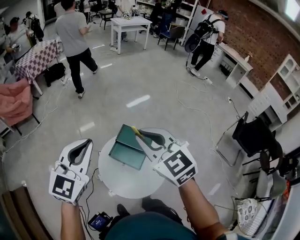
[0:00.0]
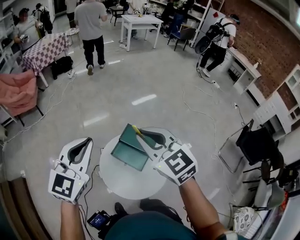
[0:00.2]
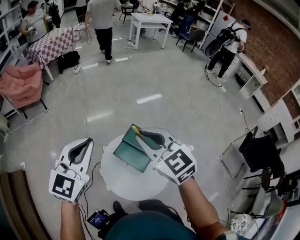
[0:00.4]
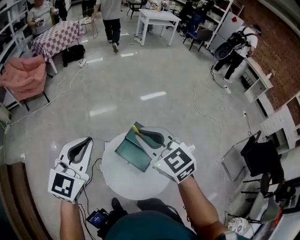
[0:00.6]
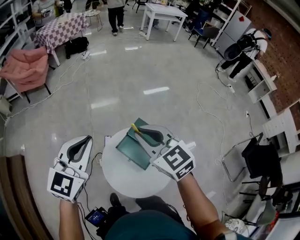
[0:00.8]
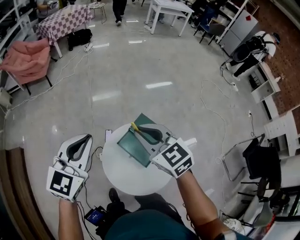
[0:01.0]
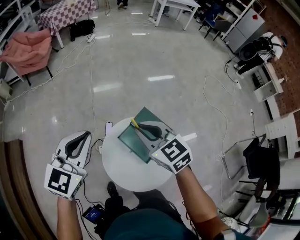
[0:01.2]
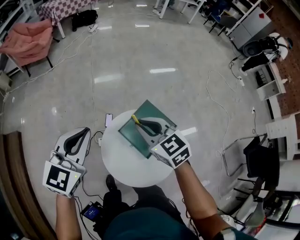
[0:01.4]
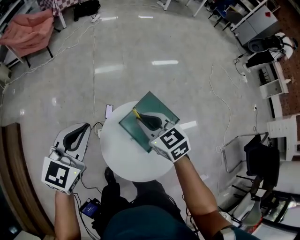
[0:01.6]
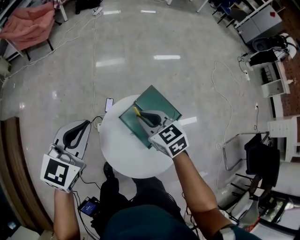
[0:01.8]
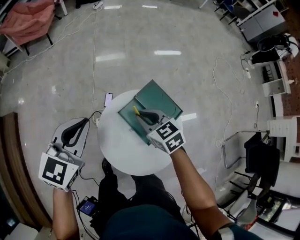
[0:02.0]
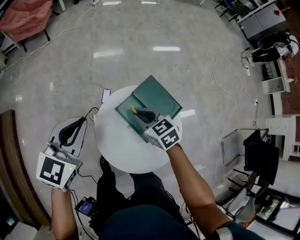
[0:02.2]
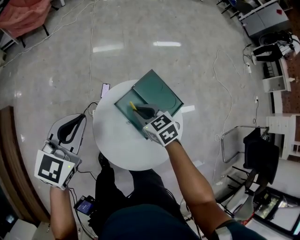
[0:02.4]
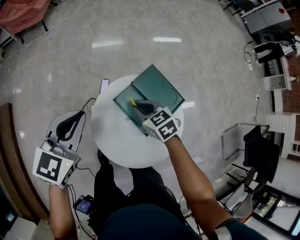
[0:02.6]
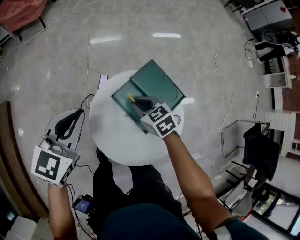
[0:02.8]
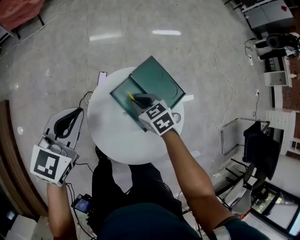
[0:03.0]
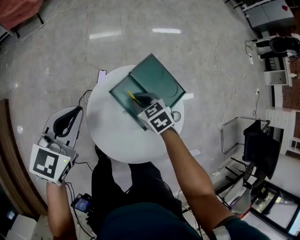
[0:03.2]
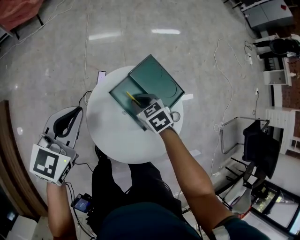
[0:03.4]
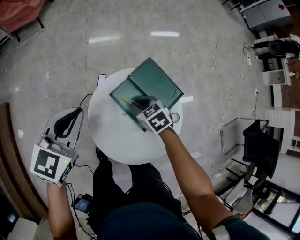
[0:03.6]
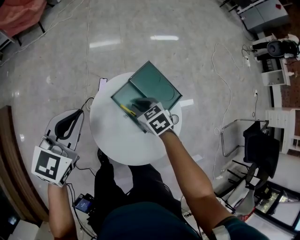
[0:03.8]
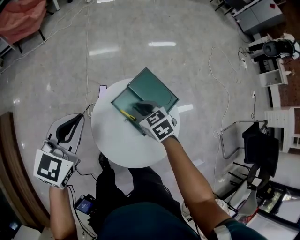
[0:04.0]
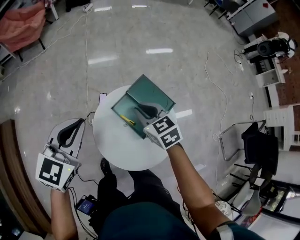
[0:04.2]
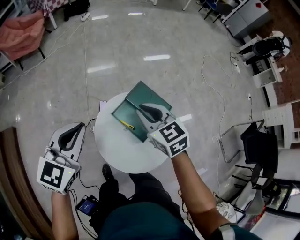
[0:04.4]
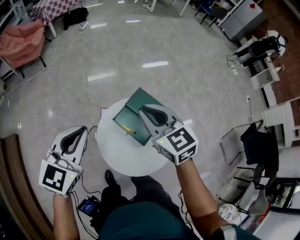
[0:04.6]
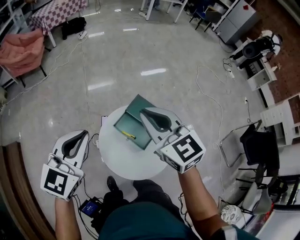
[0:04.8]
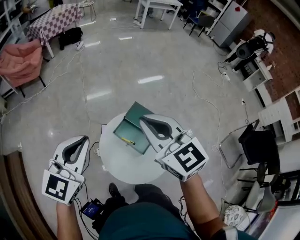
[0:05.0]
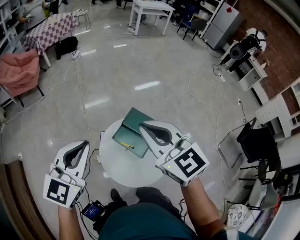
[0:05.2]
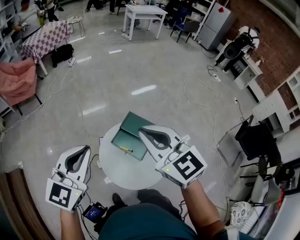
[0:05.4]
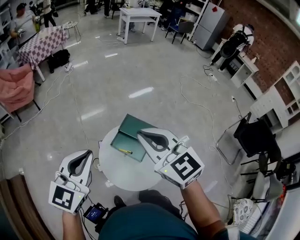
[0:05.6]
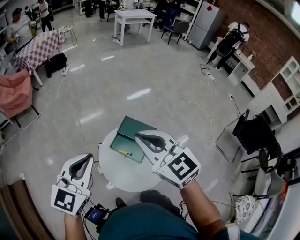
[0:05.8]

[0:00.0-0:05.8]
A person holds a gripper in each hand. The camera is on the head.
0.0 to 1.4 s: The right gripper is displaced downward and forward by approximately 30 cm, and rotates some 30 degrees; the left gripper moves downward, forward and to the left, approximately 25 cm, and rotates roughly 20 degrees.
1.4 to 2.8 s: The right gripper goes approximately 30 cm downward, and swivels about 20 degrees. The left gripper heads downward, covering approximately 20 cm.
2.8 to 4.4 s: The left gripper travels upward and backward by about 15 cm, while the right gripper is displaced upward by about 25 cm, and swivels roughly 20 degrees.
4.4 to 5.8 s: The grippers both shift upward and backward by approximately 25 cm. The right gripper turns by some 20 degrees.

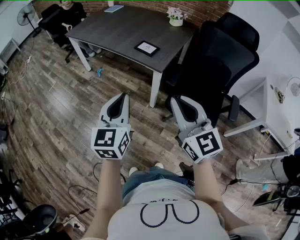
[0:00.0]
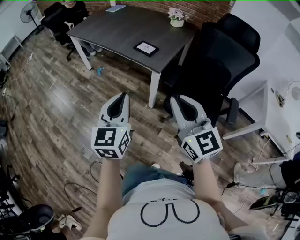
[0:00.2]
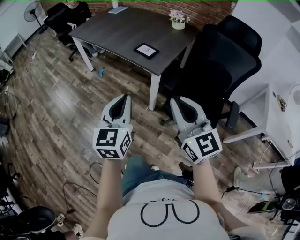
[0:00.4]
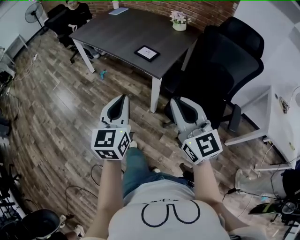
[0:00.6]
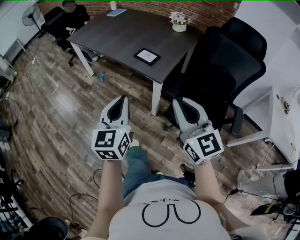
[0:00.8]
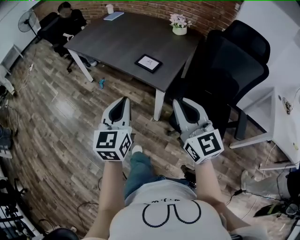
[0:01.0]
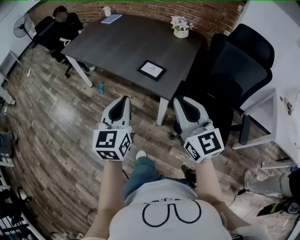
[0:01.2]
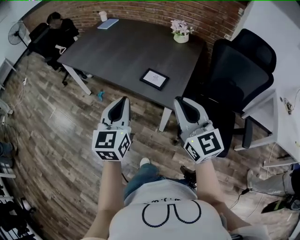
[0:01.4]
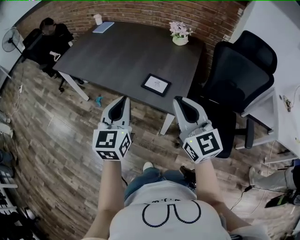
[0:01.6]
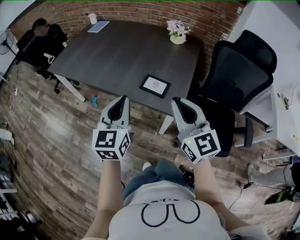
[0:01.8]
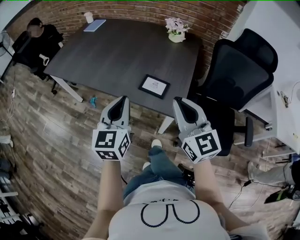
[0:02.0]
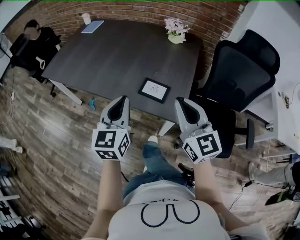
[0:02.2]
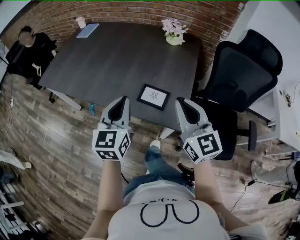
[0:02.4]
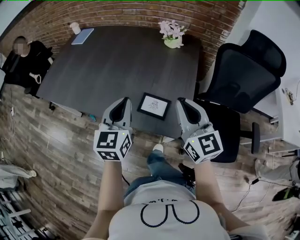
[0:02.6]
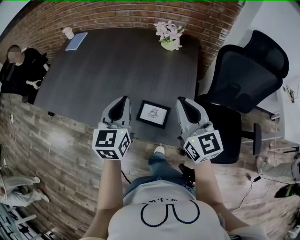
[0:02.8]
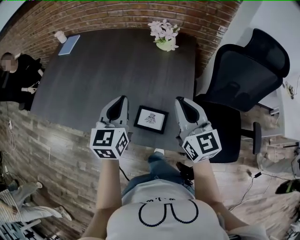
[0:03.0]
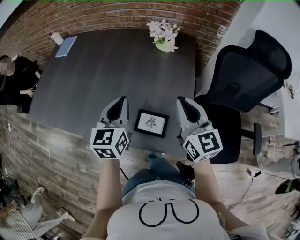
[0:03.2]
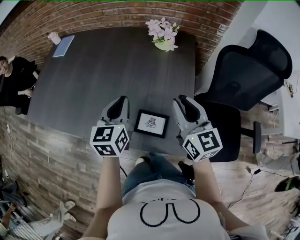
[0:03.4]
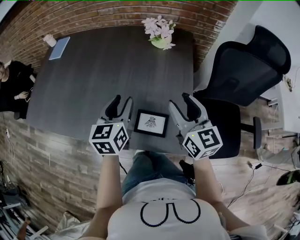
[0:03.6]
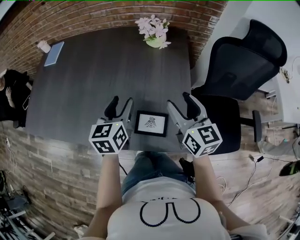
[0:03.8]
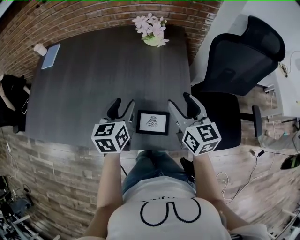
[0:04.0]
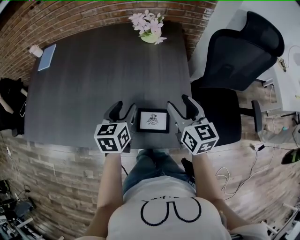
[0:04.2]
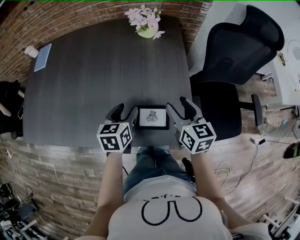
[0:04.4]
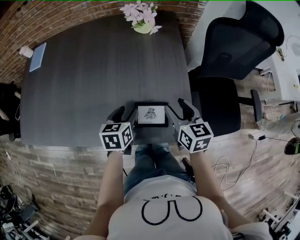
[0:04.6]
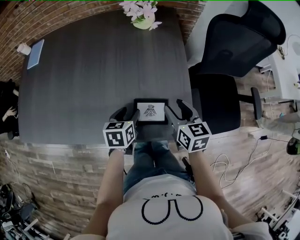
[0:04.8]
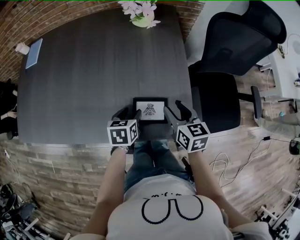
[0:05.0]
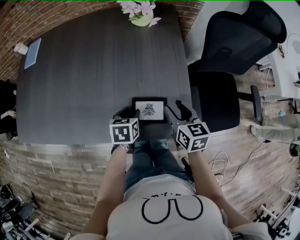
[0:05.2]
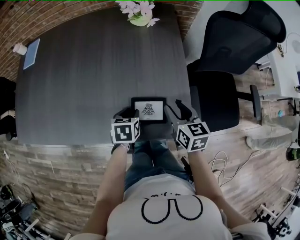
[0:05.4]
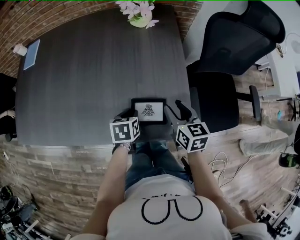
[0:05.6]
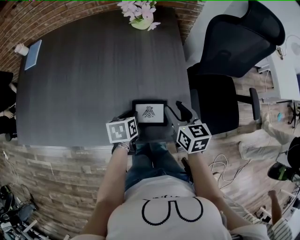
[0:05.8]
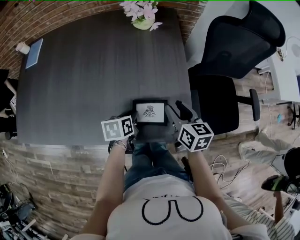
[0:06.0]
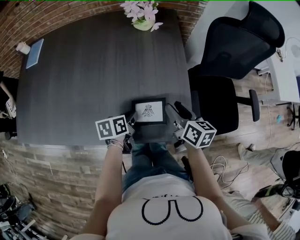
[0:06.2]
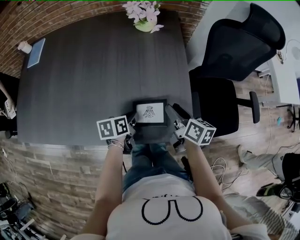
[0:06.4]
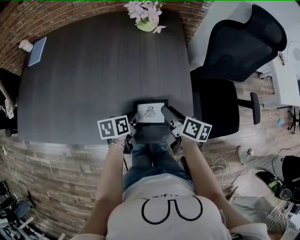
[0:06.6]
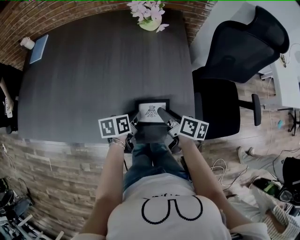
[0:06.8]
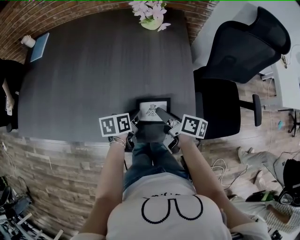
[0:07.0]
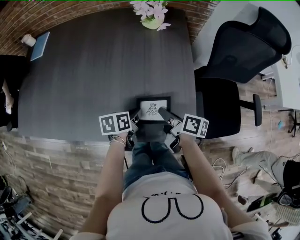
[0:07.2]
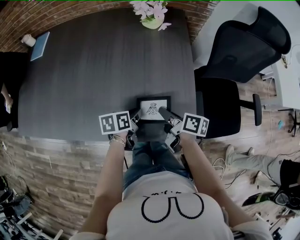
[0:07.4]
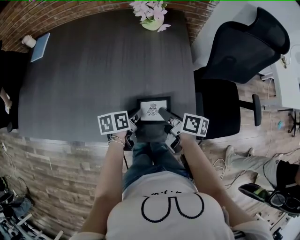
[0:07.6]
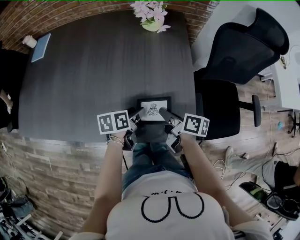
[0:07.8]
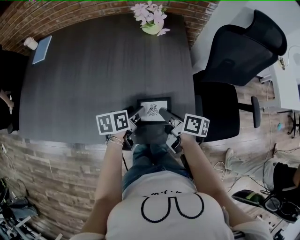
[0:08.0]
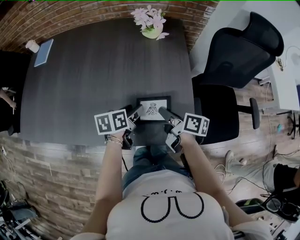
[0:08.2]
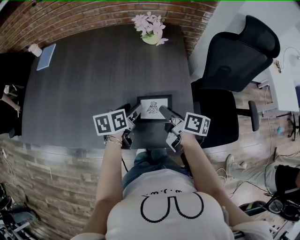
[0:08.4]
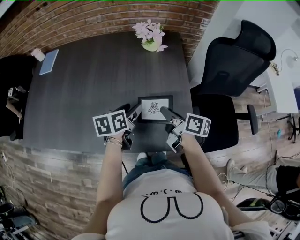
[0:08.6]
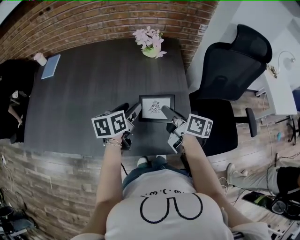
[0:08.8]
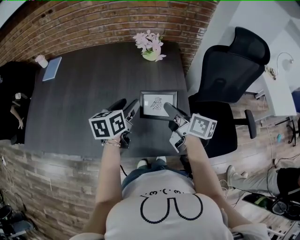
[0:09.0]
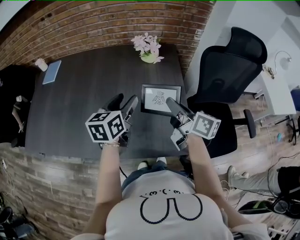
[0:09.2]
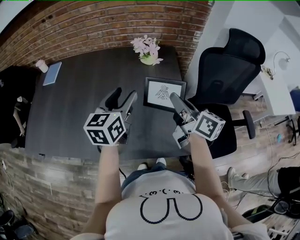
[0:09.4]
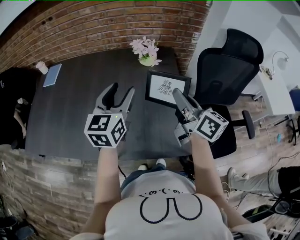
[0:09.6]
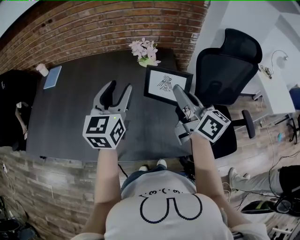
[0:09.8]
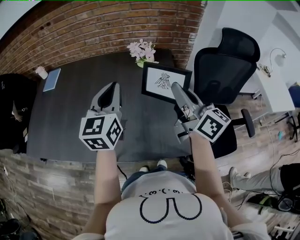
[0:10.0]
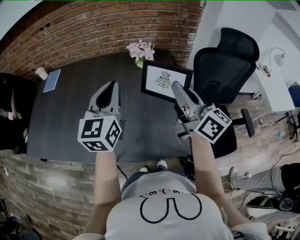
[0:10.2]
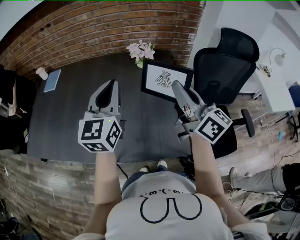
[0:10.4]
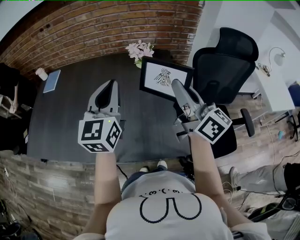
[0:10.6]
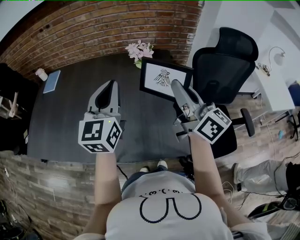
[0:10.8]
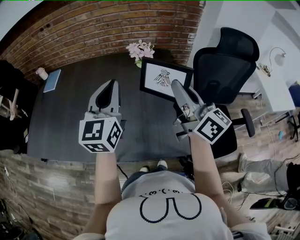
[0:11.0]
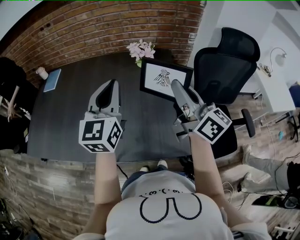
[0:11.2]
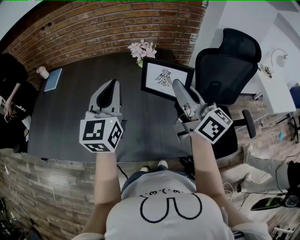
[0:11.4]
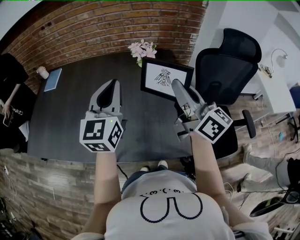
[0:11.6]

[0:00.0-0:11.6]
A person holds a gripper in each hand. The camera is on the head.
0.0 to 1.4 s: Both grippers move forward, roughly 30 cm.
1.4 to 2.8 s: The grippers both shift forward by some 30 cm.
2.8 to 4.4 s: The grippers both shift downward and forward by some 15 cm. The left gripper swivels roughly 30 degrees, and opens up. The right gripper turns by some 30 degrees, and opens its fingers.
4.4 to 5.8 s: The left gripper shifts some 10 cm downward, swivels about 20 degrees, and closes. The right gripper shifts roughly 5 cm downward.
5.8 to 7.2 s: The right gripper moves to the left, approximately 5 cm, rolls clockwise, seen from behind, by roughly 40 degrees, and closes up.
7.2 to 8.8 s: The right gripper moves upward, roughly 10 cm; the left gripper is displaced upward and forward by approximately 15 cm, turns by some 20 degrees, and opens.
8.8 to 10.2 s: The two grippers go some 20 cm upward. The left gripper points its fingers approximately 30 degrees further upward, and closes up. Meanwhile the right gripper changes its angle by roughly 40 degrees.
10.2 to 11.6 s: The grippers move only a little.

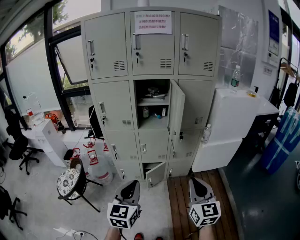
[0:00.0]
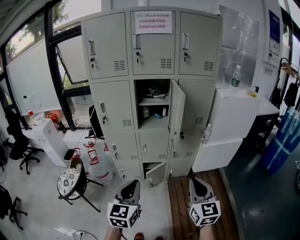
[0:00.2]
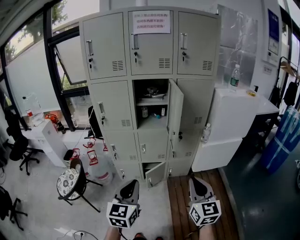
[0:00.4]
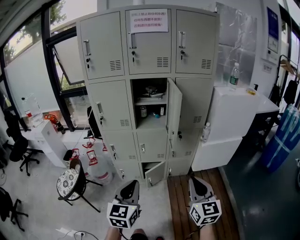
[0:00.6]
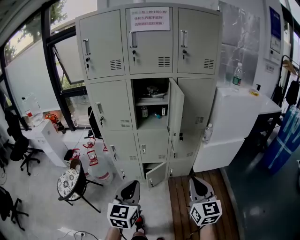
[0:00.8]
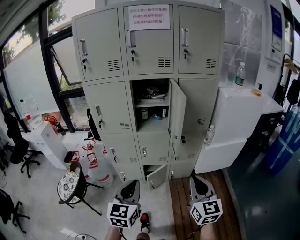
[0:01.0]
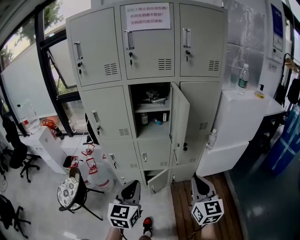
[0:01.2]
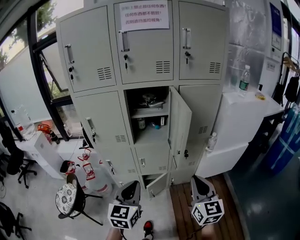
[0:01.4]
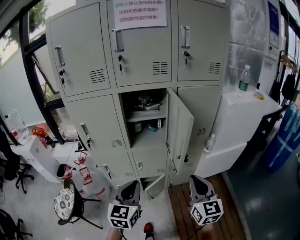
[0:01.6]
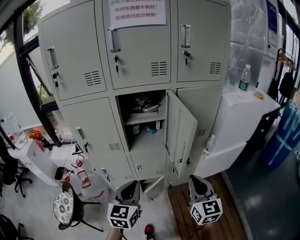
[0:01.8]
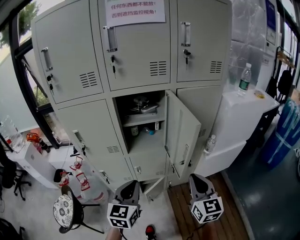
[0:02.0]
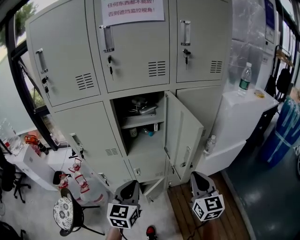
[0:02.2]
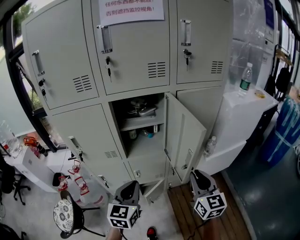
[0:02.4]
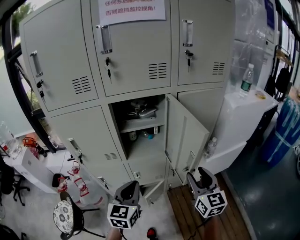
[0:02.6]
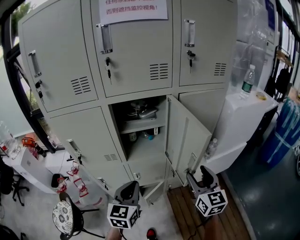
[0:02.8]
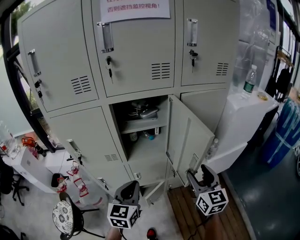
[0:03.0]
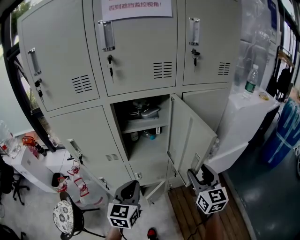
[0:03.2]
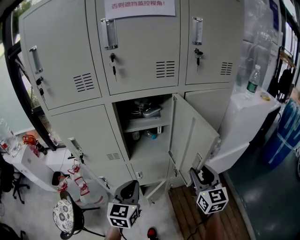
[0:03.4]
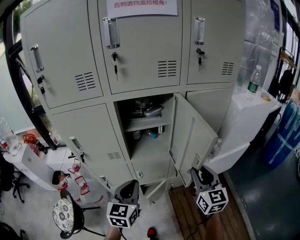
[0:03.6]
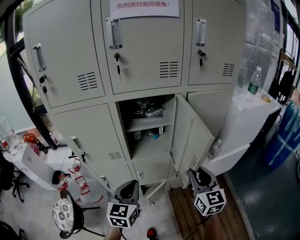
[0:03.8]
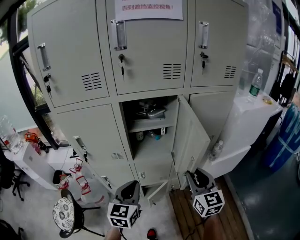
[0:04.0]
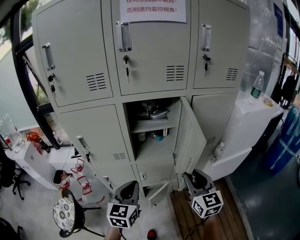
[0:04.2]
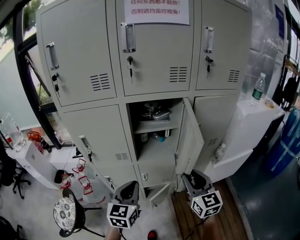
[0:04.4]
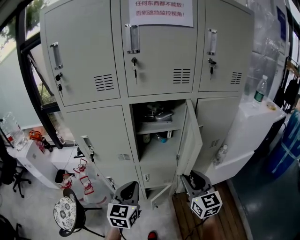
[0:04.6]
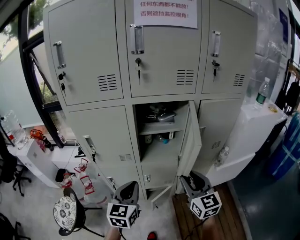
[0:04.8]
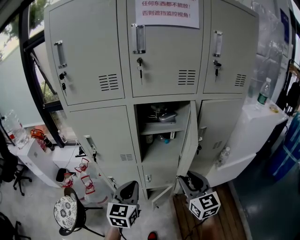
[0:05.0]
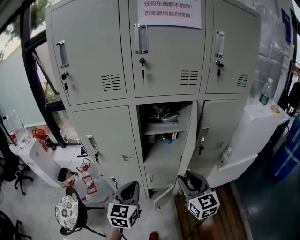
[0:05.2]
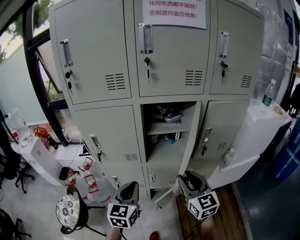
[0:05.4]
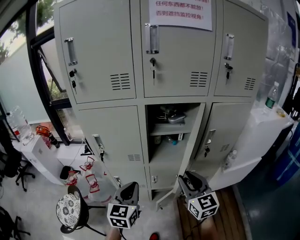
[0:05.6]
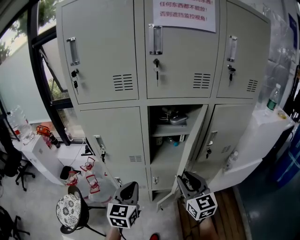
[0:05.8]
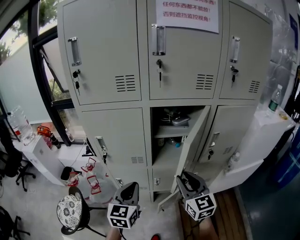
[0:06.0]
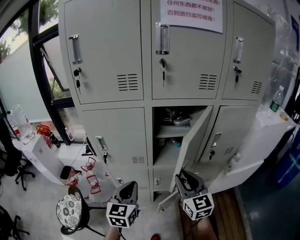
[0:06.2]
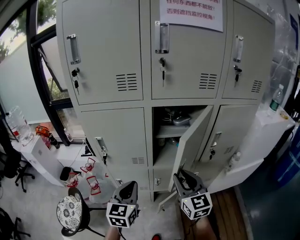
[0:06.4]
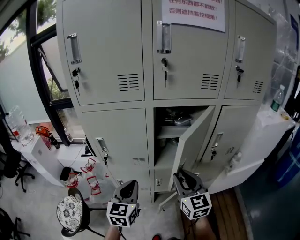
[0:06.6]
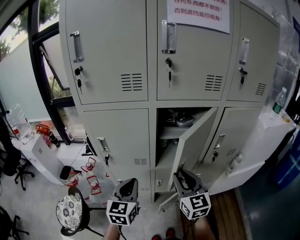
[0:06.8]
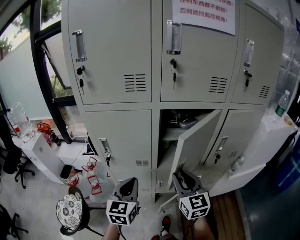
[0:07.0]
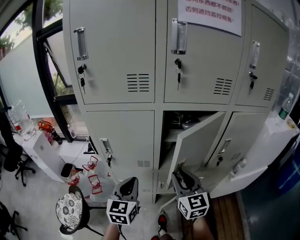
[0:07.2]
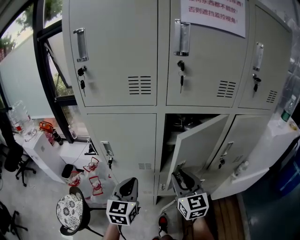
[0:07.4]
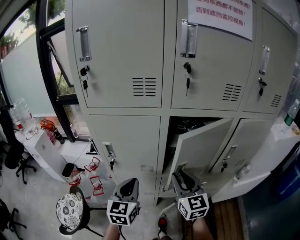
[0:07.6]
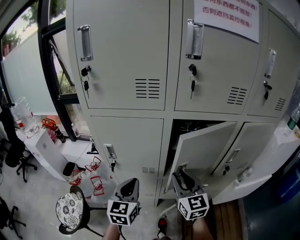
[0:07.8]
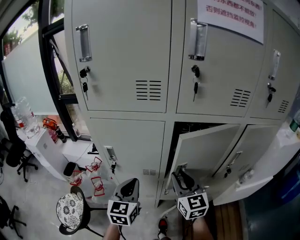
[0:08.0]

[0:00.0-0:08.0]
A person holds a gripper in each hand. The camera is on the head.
0.0 to 1.6 s: Both grippers travel together forward, some 20 cm.
1.6 to 3.2 s: The two grippers go about 15 cm forward. The right gripper opens up.
3.2 to 4.8 s: The left gripper goes some 5 cm to the left, while the right gripper heads to the left, covering approximately 10 cm, and closes.
4.8 to 6.4 s: The grippers both shift to the left by roughly 10 cm.
6.4 to 8.0 s: The right gripper moves forward and to the left, about 10 cm. Meanwhile the left gripper heads forward, covering roughly 10 cm.
